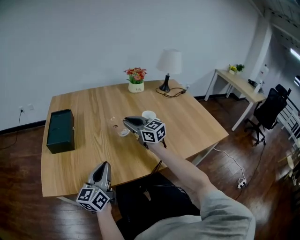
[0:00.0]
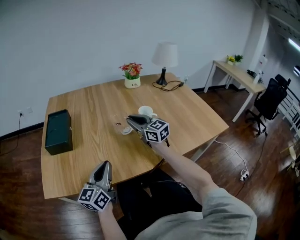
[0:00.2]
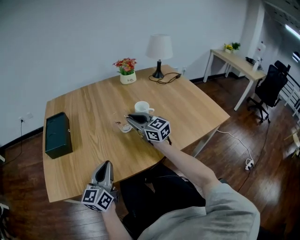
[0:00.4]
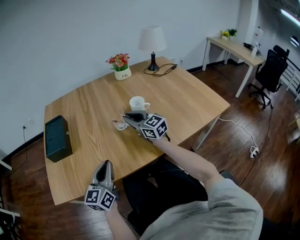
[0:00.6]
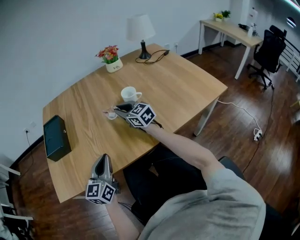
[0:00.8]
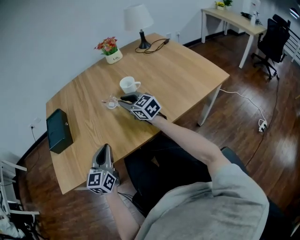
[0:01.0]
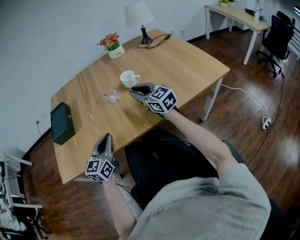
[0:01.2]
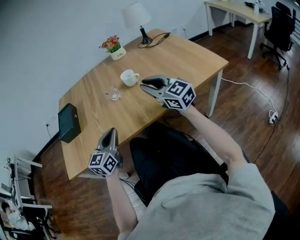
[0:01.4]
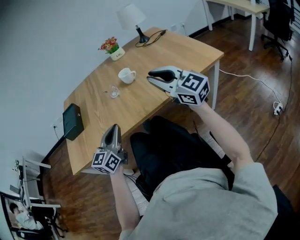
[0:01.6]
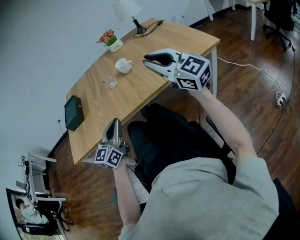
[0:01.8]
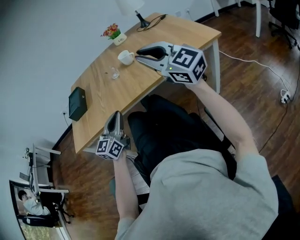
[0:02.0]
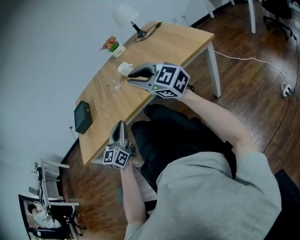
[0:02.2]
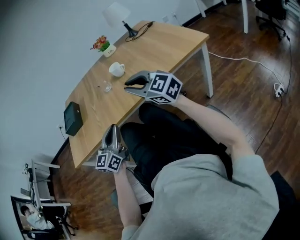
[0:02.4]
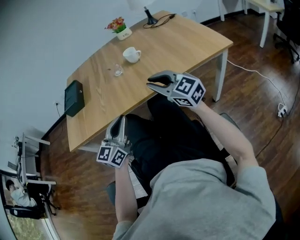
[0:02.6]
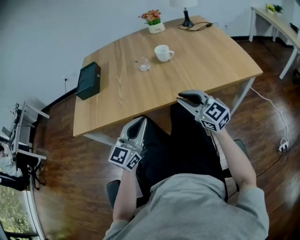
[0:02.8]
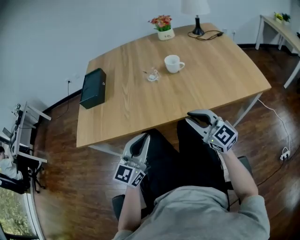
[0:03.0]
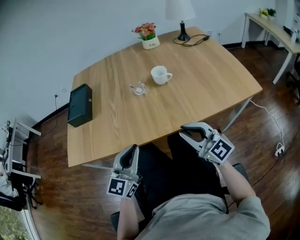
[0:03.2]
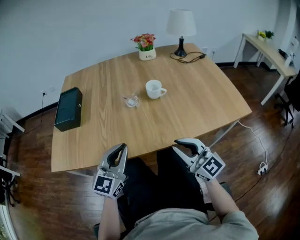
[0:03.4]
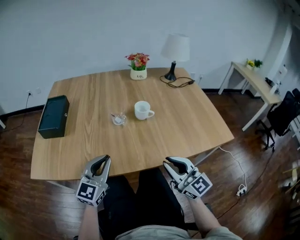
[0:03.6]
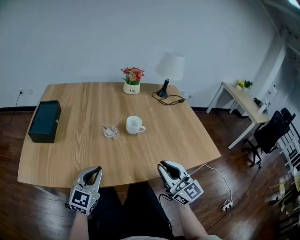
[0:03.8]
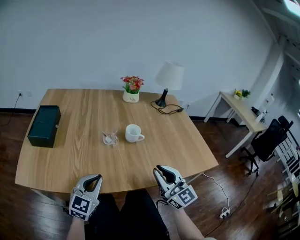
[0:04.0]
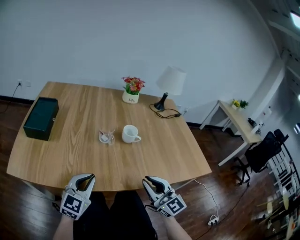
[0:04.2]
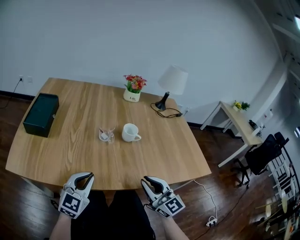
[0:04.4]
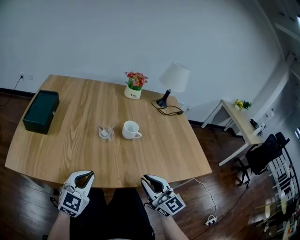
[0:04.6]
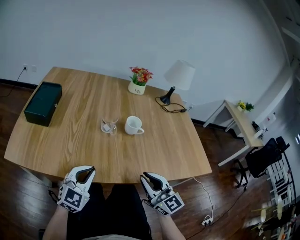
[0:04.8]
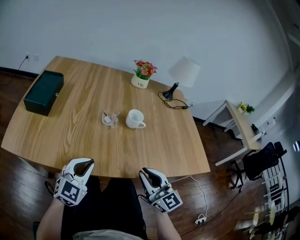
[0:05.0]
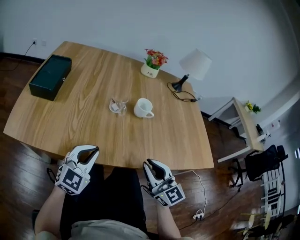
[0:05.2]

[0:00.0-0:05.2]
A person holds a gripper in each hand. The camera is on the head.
0:00.0 to 0:01.8: The left gripper goes roughly 15 cm to the right and backward, and rotates roughly 20 degrees, while the right gripper travels backward and to the right by approximately 35 cm, and changes its angle by approximately 20 degrees.
0:01.8 to 0:03.4: The right gripper travels downward and to the left by roughly 15 cm. The left gripper travels forward by some 5 cm.
0:03.4 to 0:05.2: The left gripper moves about 5 cm.

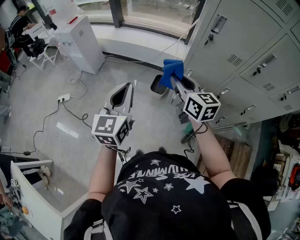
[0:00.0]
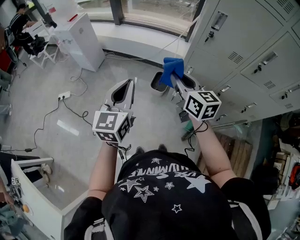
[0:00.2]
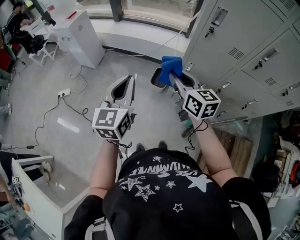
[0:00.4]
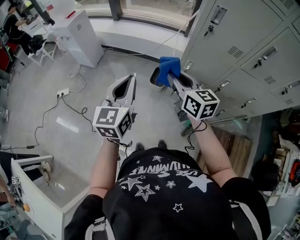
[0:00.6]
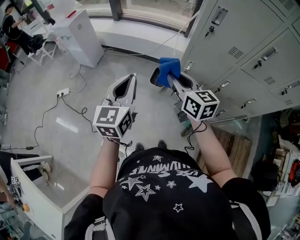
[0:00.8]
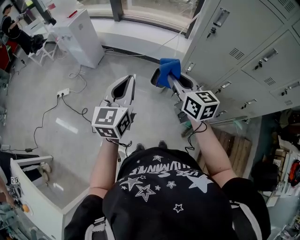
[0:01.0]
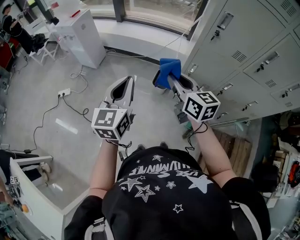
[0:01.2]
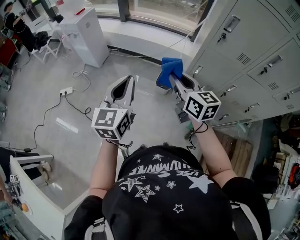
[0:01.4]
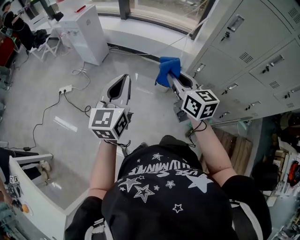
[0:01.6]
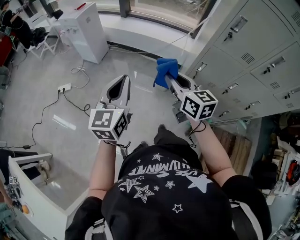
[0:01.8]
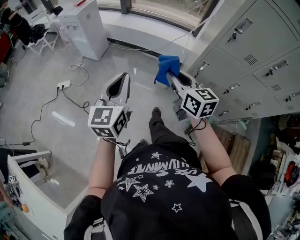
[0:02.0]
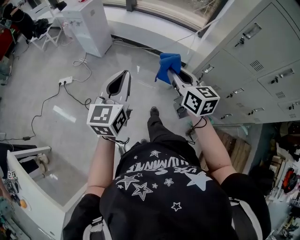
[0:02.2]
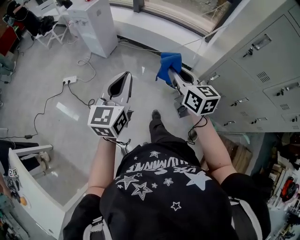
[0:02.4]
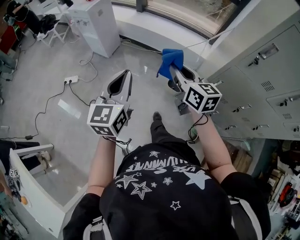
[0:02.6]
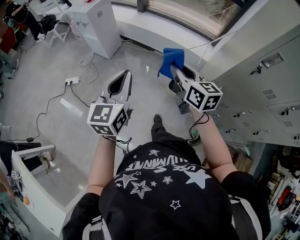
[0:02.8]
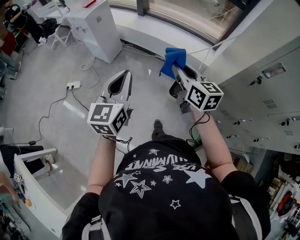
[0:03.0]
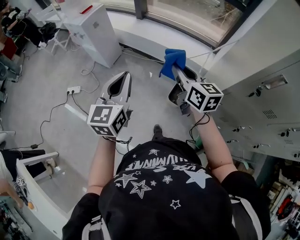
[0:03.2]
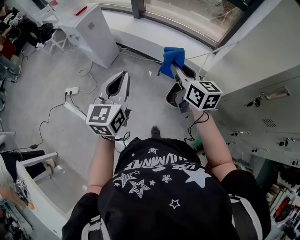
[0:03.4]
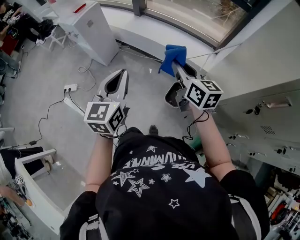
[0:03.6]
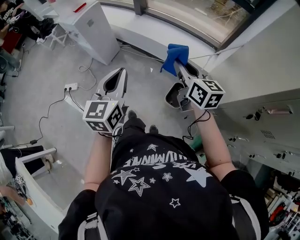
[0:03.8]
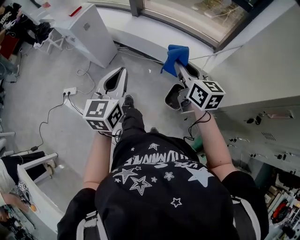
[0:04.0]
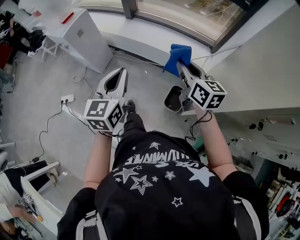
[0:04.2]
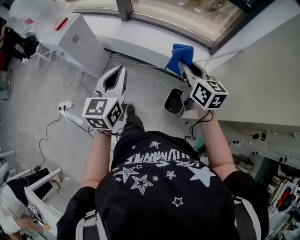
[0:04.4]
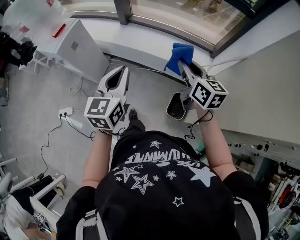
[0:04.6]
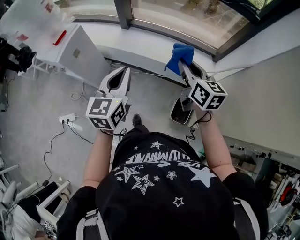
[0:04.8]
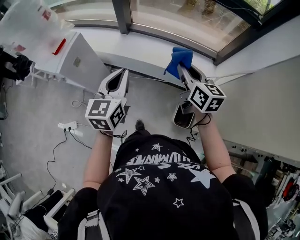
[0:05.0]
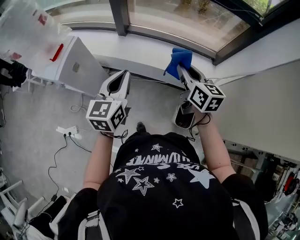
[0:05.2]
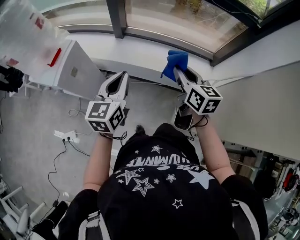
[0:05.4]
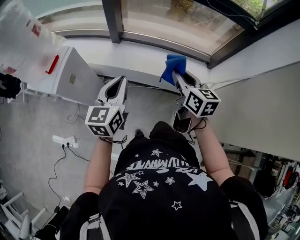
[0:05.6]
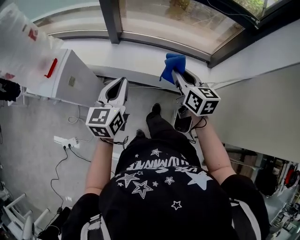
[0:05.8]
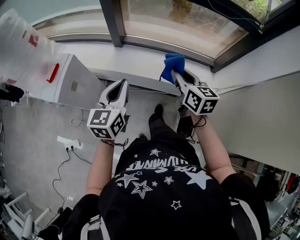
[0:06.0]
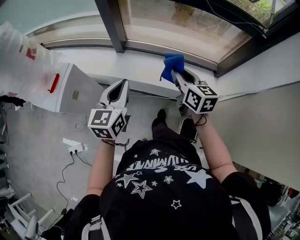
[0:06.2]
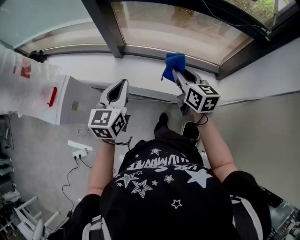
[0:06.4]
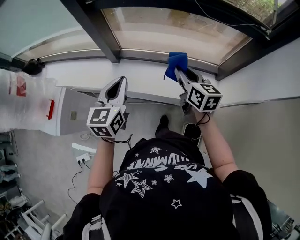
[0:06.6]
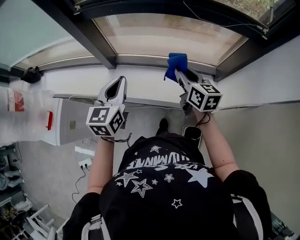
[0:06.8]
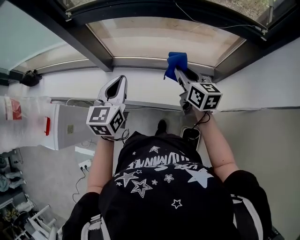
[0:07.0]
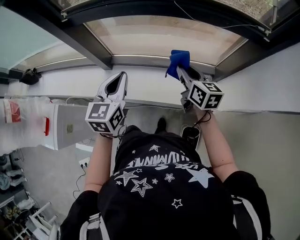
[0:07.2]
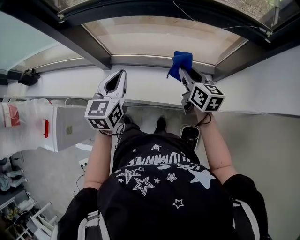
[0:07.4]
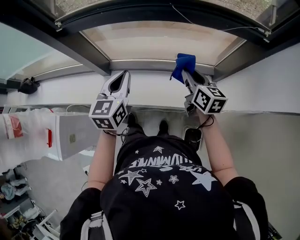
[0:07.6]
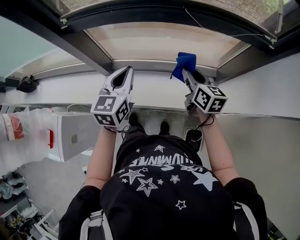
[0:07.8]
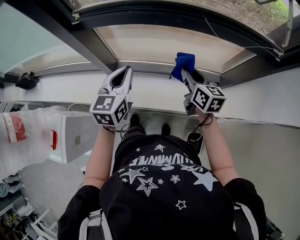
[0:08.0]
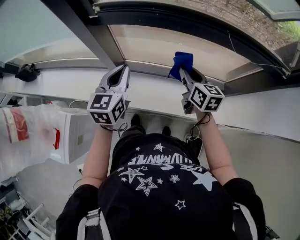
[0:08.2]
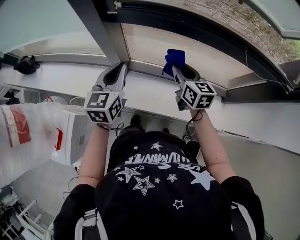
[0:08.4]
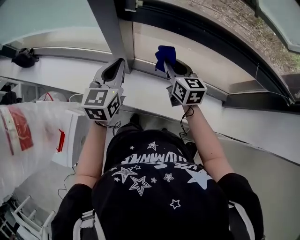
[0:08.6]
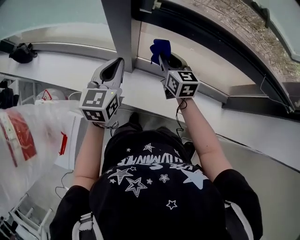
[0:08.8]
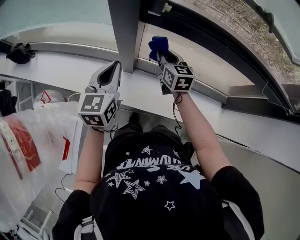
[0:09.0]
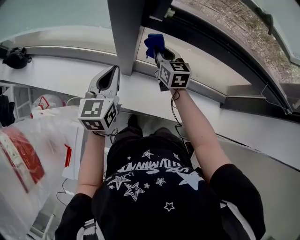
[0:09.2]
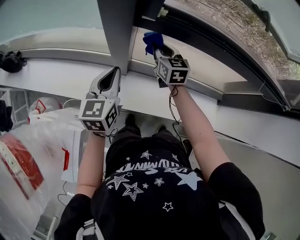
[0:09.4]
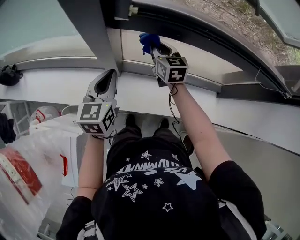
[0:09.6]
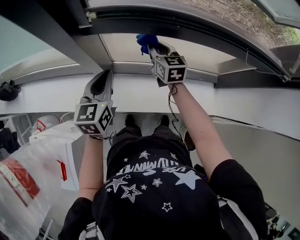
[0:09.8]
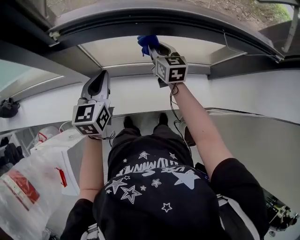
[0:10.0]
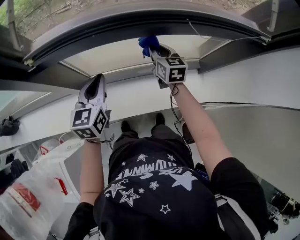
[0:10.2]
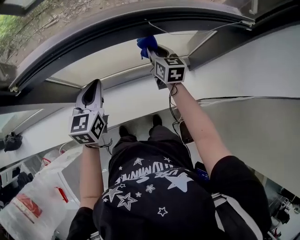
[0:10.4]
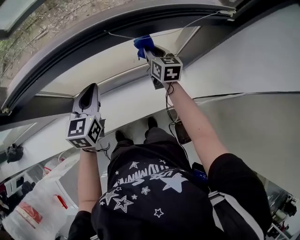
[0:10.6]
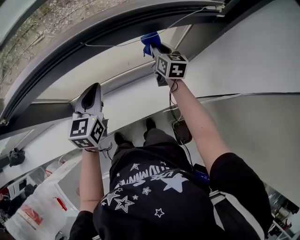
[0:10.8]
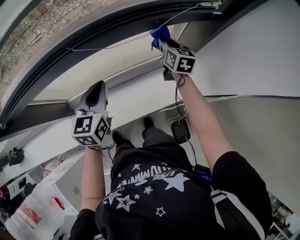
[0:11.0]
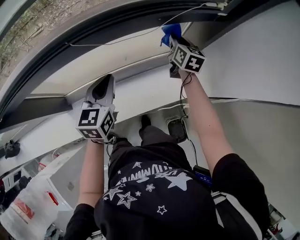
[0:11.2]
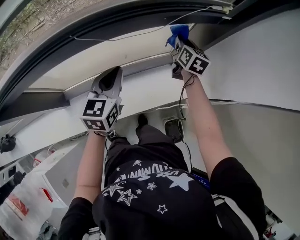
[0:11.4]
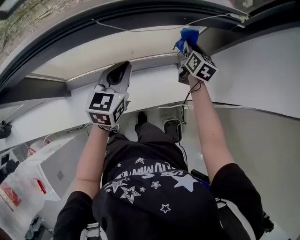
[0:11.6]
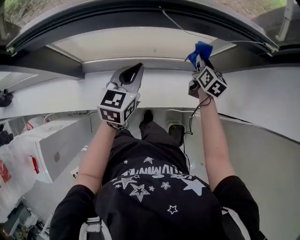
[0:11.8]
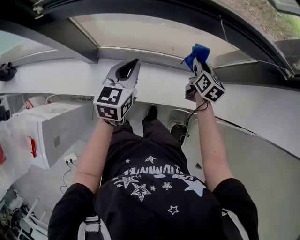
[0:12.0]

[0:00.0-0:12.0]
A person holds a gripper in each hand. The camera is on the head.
0:00.0 to 0:01.6: The grippers both shift to the left by some 10 cm.
0:01.6 to 0:03.0: Both grippers travel together forward, roughly 20 cm.
0:03.0 to 0:04.4: The left gripper travels forward by about 25 cm. The right gripper shifts about 25 cm forward and to the right.
0:04.4 to 0:06.0: The grippers both shift forward and to the left by approximately 25 cm.
0:06.0 to 0:07.6: The two grippers go approximately 30 cm forward and to the right.
0:07.6 to 0:09.0: The two grippers go roughly 40 cm to the left and forward. The right gripper changes its angle by about 20 degrees.
0:09.0 to 0:10.4: Both grippers move to the right, approximately 35 cm. The left gripper swivels some 20 degrees. Meanwhile the right gripper changes its angle by about 30 degrees.
0:10.4 to 0:12.0: The right gripper reaches some 25 cm to the right, then returns; the left gripper goes to the right and returns, approximately 20 cm each way.

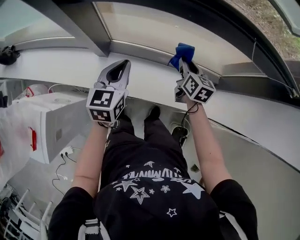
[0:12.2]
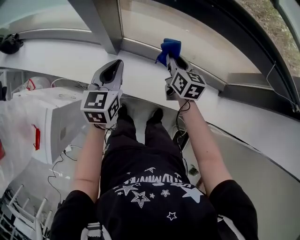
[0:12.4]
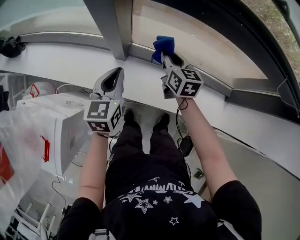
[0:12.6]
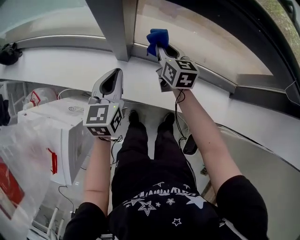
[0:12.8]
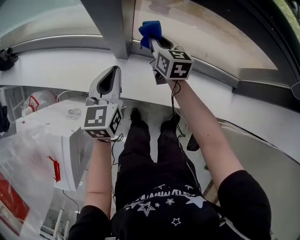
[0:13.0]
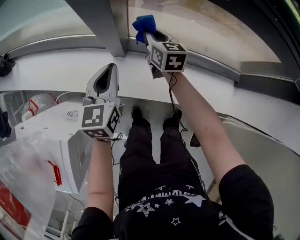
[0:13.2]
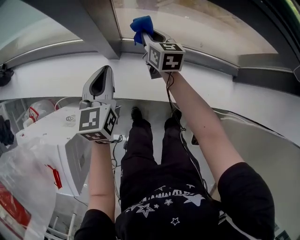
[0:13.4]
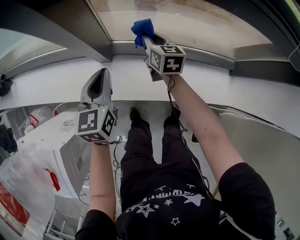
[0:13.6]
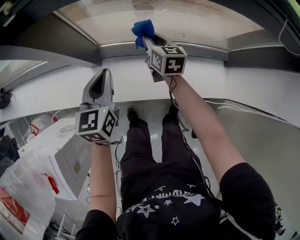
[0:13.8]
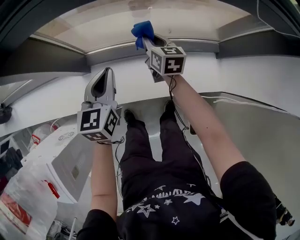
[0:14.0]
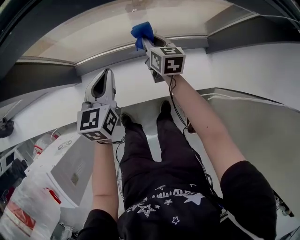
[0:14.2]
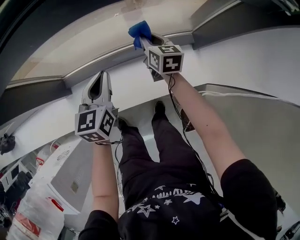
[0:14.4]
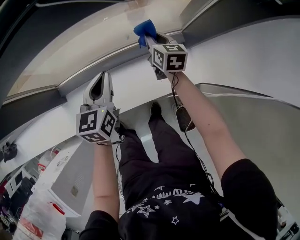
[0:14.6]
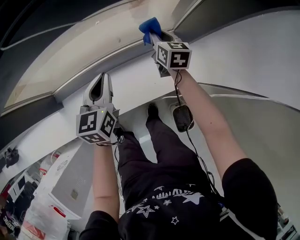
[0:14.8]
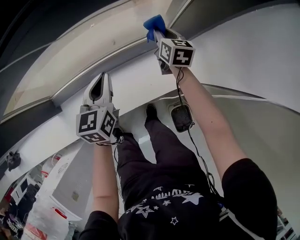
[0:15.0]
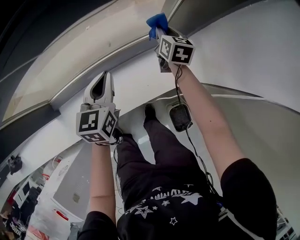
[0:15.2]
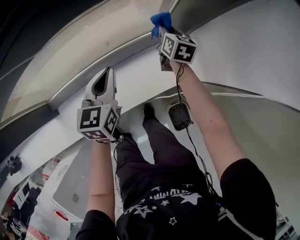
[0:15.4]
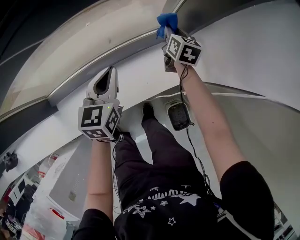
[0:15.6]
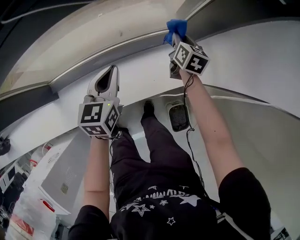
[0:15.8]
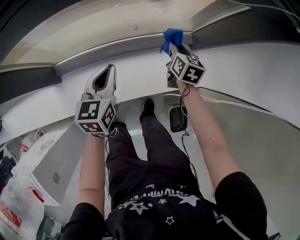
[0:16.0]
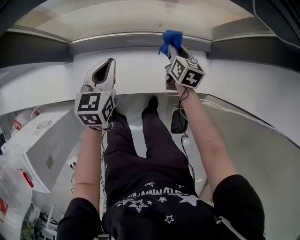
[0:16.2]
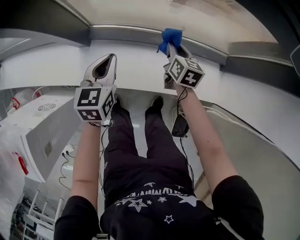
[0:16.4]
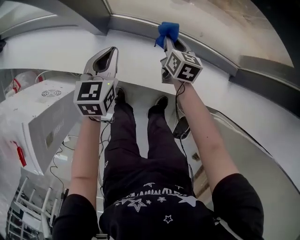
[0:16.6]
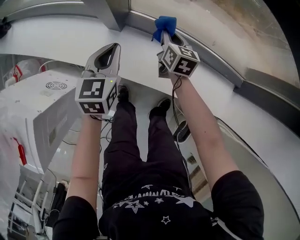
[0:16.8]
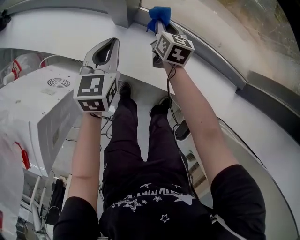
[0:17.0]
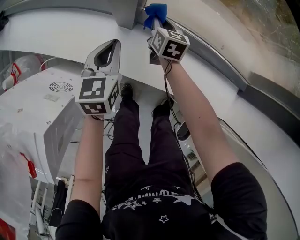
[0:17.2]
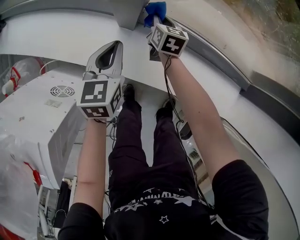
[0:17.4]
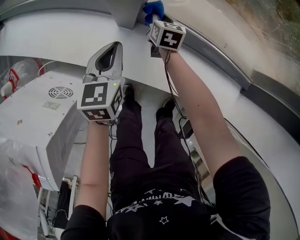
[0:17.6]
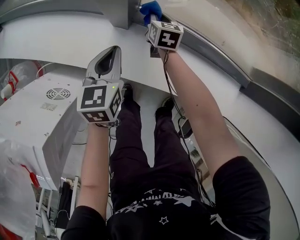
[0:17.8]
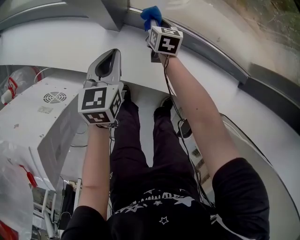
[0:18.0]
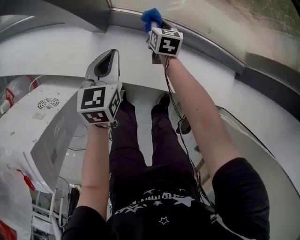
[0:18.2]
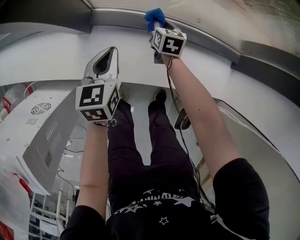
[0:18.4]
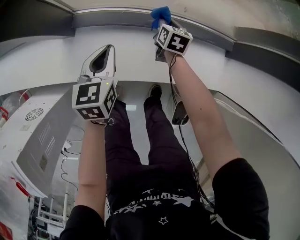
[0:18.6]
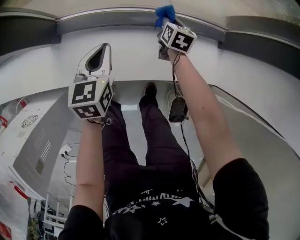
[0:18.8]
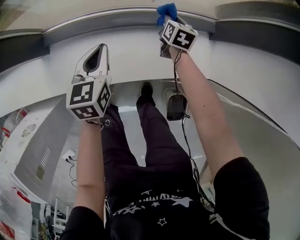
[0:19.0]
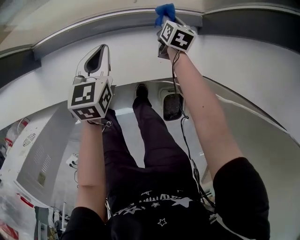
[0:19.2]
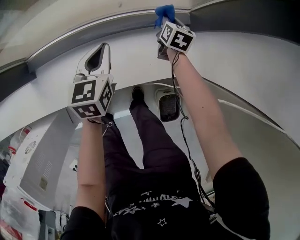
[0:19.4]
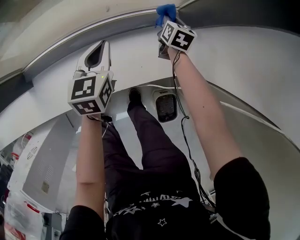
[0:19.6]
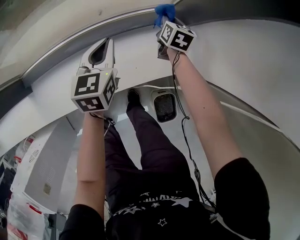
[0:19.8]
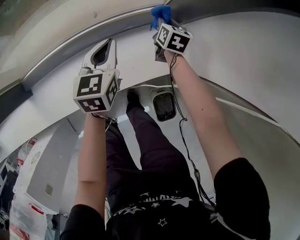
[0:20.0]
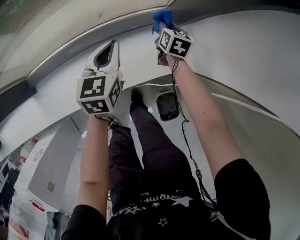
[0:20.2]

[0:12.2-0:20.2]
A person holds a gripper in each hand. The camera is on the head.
0:12.2 to 0:13.8: The right gripper travels to the left, downward and forward by some 15 cm, while the left gripper is displaced downward by some 10 cm, and goes to the left and returns, approximately 20 cm each way.
0:13.8 to 0:15.4: The two grippers travel together, approximately 50 cm. The right gripper rotates about 40 degrees. Meanwhile the left gripper changes its angle by some 30 degrees.
0:15.4 to 0:17.0: The pair of grippers is taken approximately 60 cm. The right gripper rotates about 50 degrees, while the left gripper changes its angle by some 40 degrees.
0:17.0 to 0:18.6: The grippers both shift to the right by about 25 cm. The right gripper rotates some 20 degrees.
0:18.6 to 0:20.2: The right gripper heads to the right, covering some 40 cm, and swivels approximately 20 degrees. The left gripper moves to the right and forward, some 40 cm, and swivels about 20 degrees.
